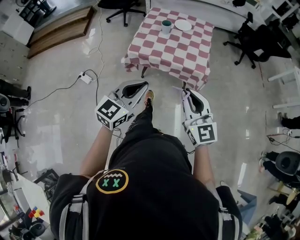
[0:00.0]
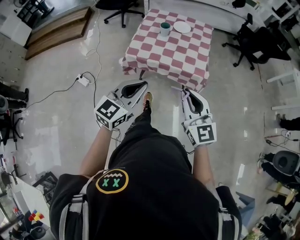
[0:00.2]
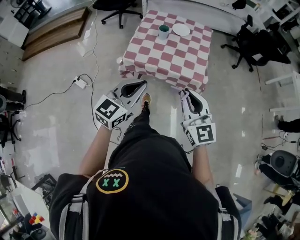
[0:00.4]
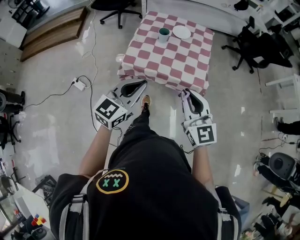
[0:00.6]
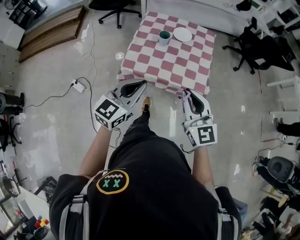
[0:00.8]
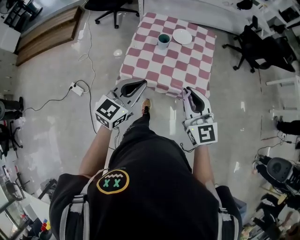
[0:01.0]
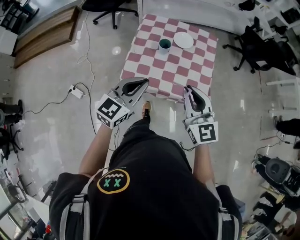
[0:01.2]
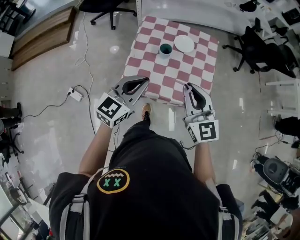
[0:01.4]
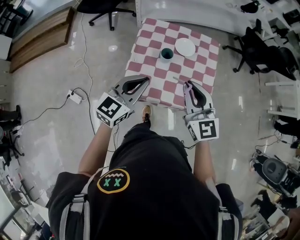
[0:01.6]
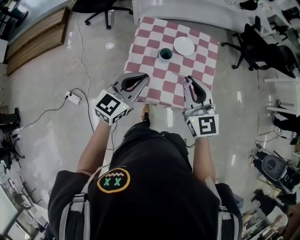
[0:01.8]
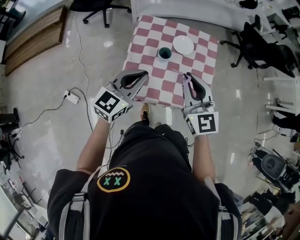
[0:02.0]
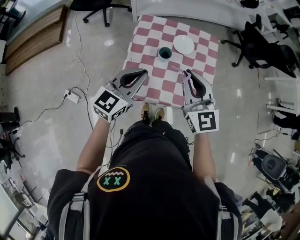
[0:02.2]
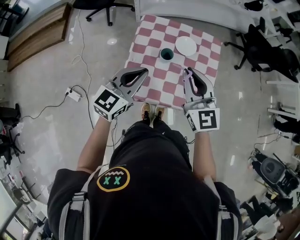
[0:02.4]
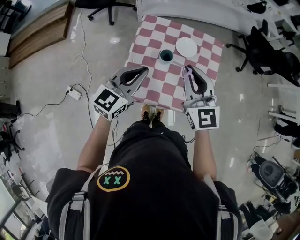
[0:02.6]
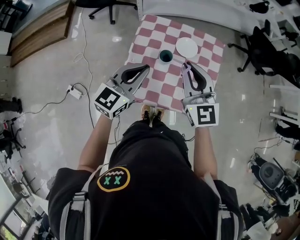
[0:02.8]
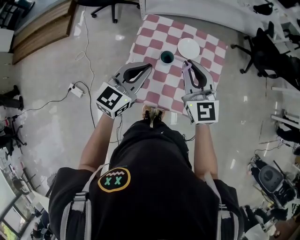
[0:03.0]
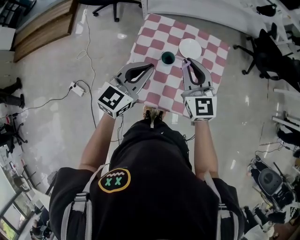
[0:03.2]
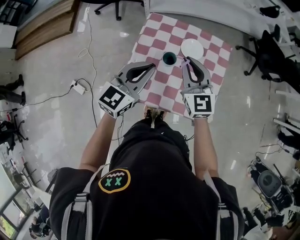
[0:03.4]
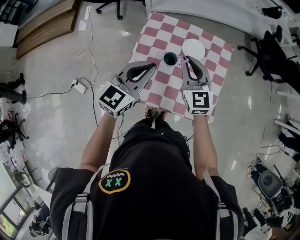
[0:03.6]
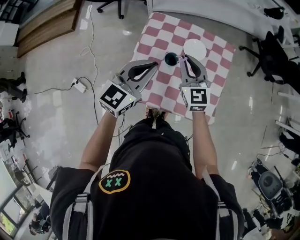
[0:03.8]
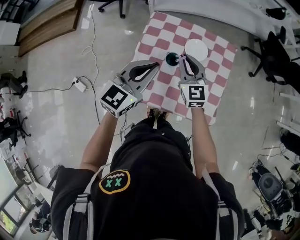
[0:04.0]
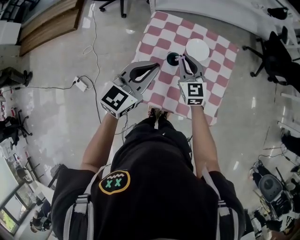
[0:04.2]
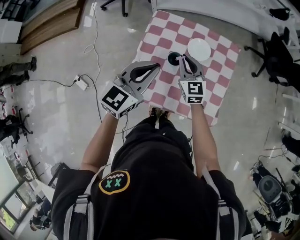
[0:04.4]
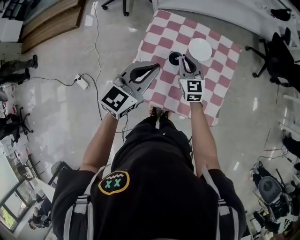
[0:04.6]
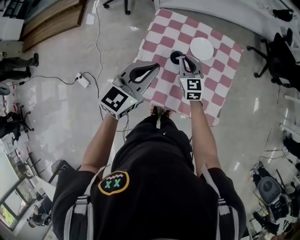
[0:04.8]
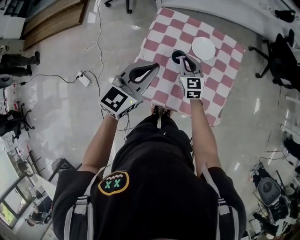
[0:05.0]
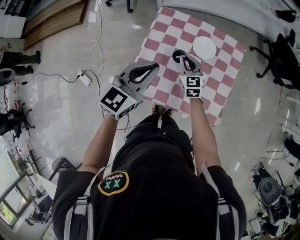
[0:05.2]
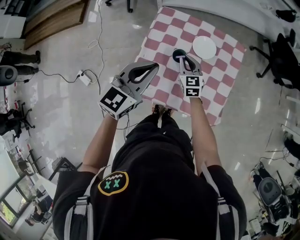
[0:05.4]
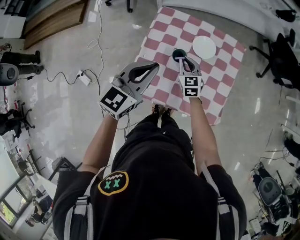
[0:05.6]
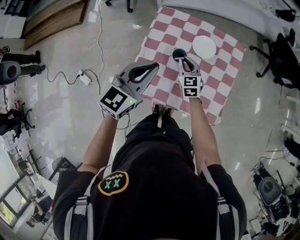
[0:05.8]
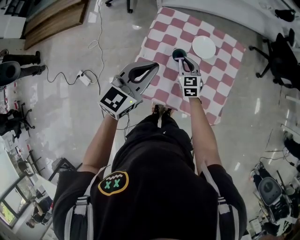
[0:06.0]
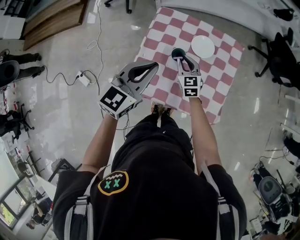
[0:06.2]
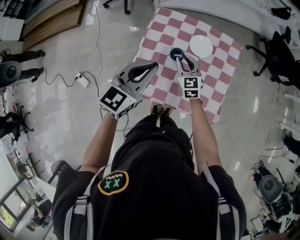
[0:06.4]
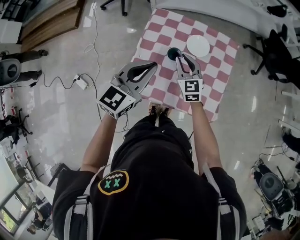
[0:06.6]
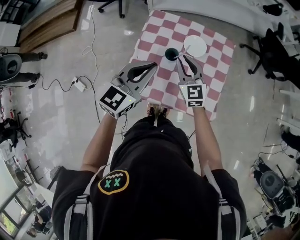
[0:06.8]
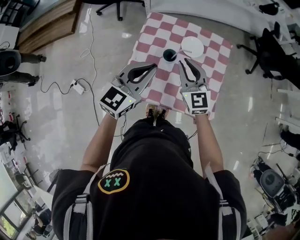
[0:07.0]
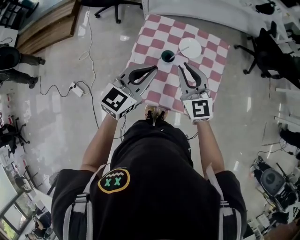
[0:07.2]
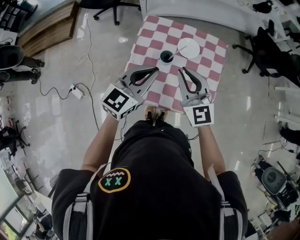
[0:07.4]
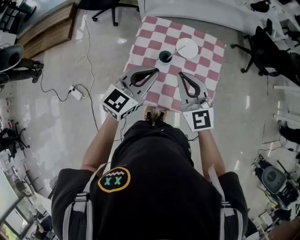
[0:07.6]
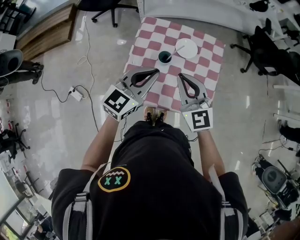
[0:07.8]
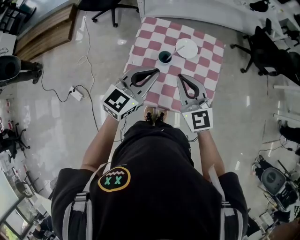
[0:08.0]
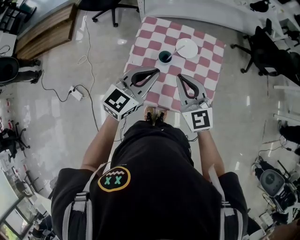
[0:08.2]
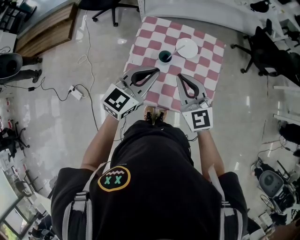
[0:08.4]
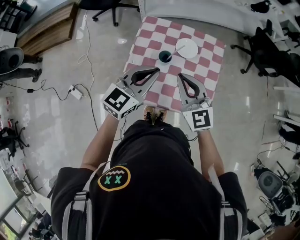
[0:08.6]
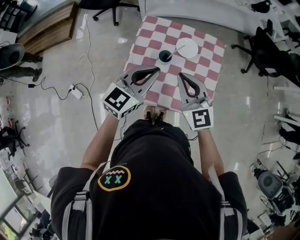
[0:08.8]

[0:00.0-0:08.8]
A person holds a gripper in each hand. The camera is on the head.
0.0 to 1.4 s: Both grippers move forward, some 35 cm.
1.4 to 3.0 s: Both grippers move forward, approximately 15 cm.
3.0 to 4.4 s: The right gripper travels downward and forward by about 20 cm.
4.4 to 5.8 s: The right gripper goes about 10 cm downward.
5.8 to 7.4 s: The right gripper is displaced upward and backward by approximately 30 cm, and swivels roughly 30 degrees, while the left gripper moves some 5 cm.
7.4 to 8.8 s: The grippers stay close to where they were, moving slightly.

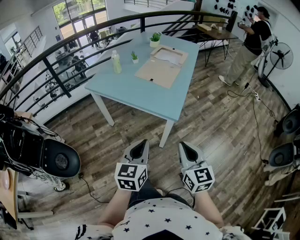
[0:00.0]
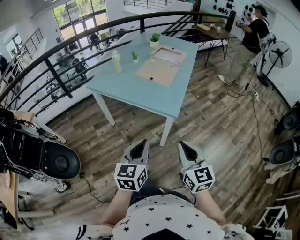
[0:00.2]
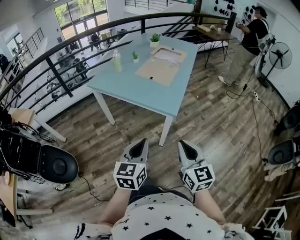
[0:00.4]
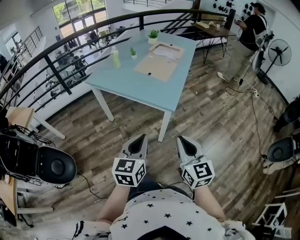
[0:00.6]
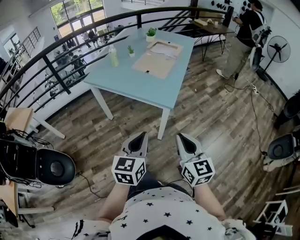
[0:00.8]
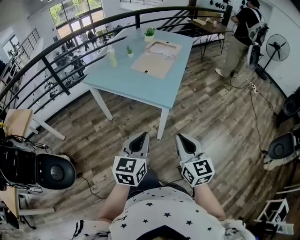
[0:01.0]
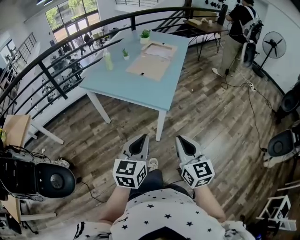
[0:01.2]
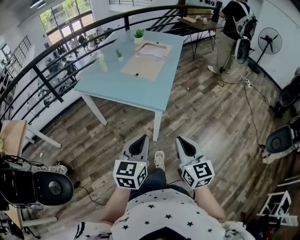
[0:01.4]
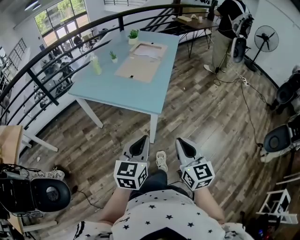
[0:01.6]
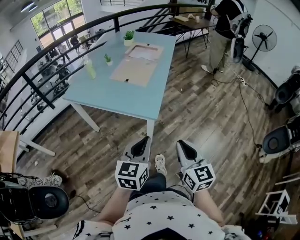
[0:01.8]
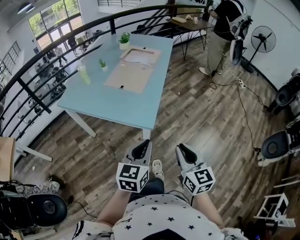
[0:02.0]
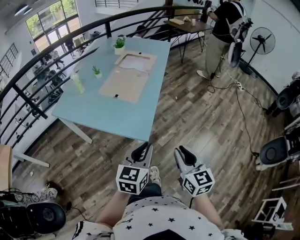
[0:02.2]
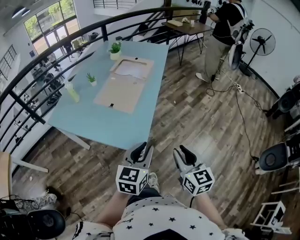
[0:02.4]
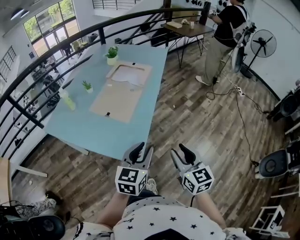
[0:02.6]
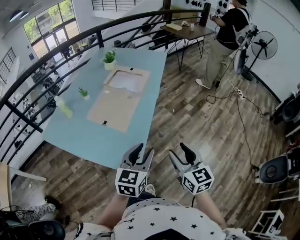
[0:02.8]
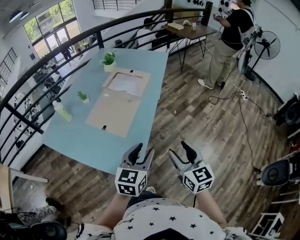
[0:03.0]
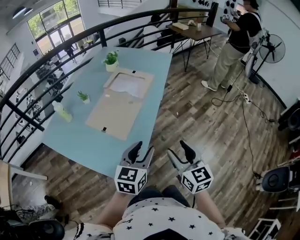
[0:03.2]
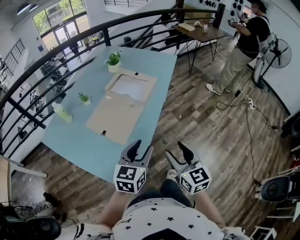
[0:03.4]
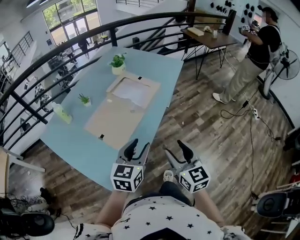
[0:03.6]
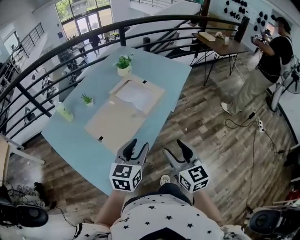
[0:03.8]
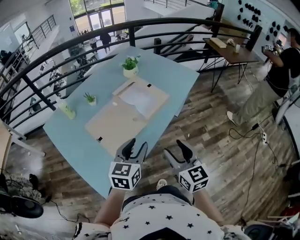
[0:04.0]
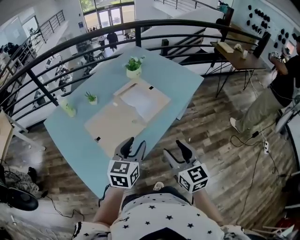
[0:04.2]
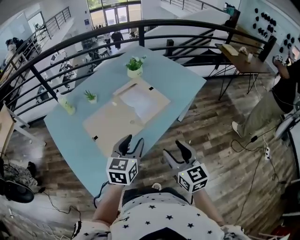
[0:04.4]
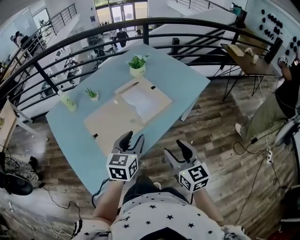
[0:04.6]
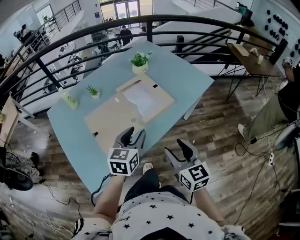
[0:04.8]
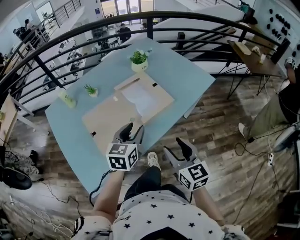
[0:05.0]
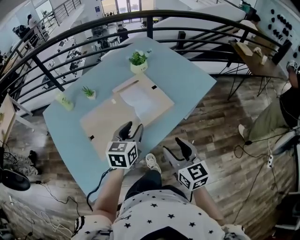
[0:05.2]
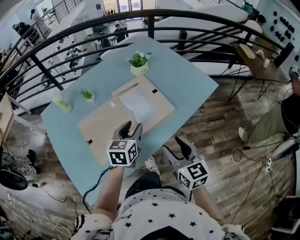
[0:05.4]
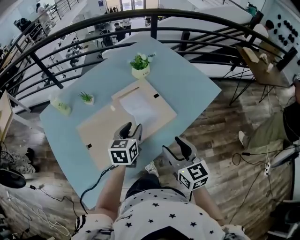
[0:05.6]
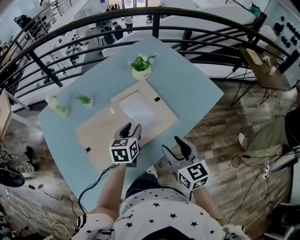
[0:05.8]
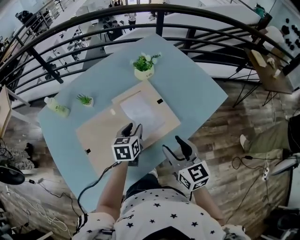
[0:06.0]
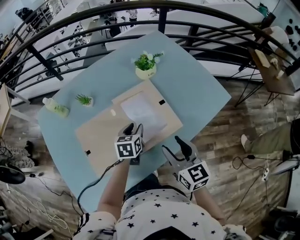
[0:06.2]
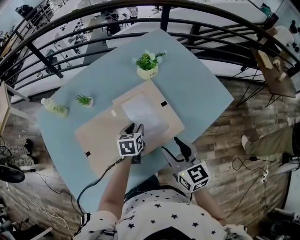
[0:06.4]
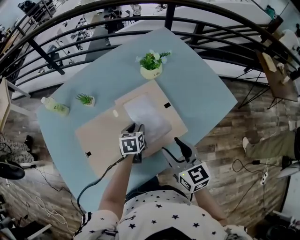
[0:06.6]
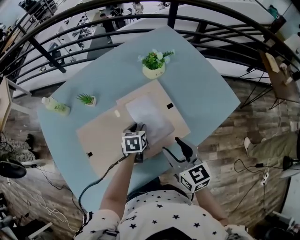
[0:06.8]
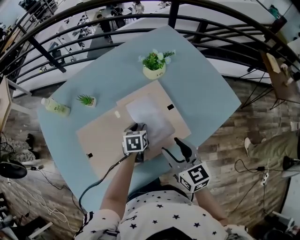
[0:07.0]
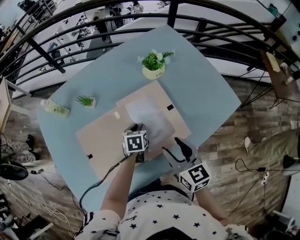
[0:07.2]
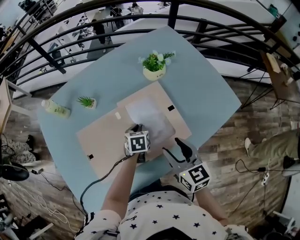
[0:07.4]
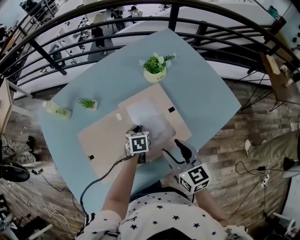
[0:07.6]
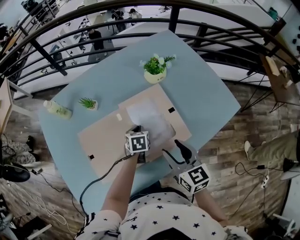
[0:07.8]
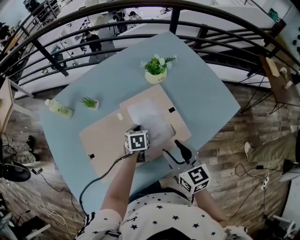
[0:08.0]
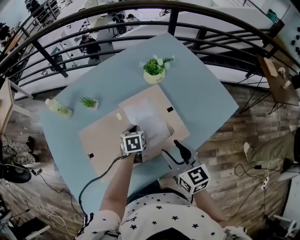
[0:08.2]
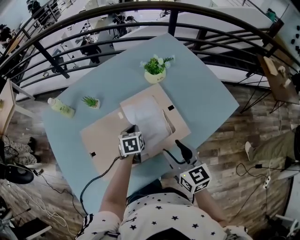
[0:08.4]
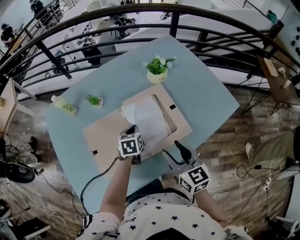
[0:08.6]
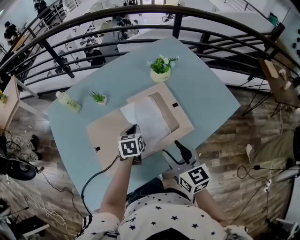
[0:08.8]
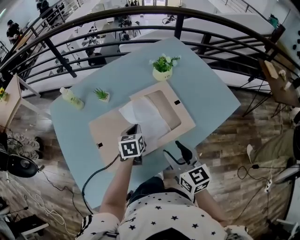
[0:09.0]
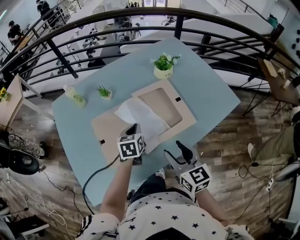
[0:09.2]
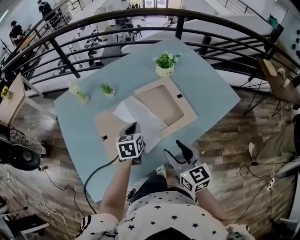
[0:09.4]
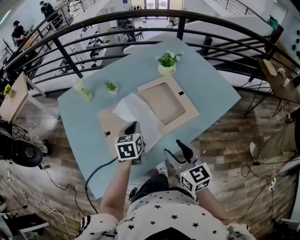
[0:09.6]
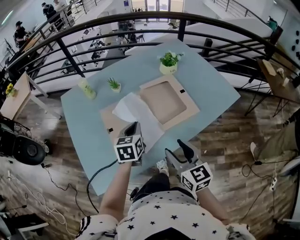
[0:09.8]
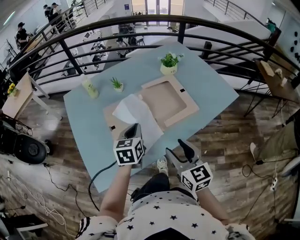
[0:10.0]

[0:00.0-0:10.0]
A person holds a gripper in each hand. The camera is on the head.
0.0 to 1.4 s: The grippers both shift to the right by approximately 5 cm.
1.4 to 2.8 s: The two grippers travel together, forward and to the right, approximately 40 cm. The left gripper opens its fingers, while the right gripper opens.
2.8 to 4.2 s: The right gripper moves some 35 cm, and changes its angle by some 30 degrees. Meanwhile the left gripper ends up approximately 30 cm from where it was, and rotates some 30 degrees.
4.2 to 5.8 s: The two grippers go about 25 cm forward. The left gripper changes its angle by approximately 20 degrees.
5.8 to 7.2 s: The left gripper travels downward and forward by about 15 cm, and rotates approximately 20 degrees; the right gripper travels forward by approximately 10 cm.
7.2 to 8.6 s: The left gripper moves upward, about 5 cm, and closes its fingers.
8.6 to 10.0 s: The right gripper is displaced backward and to the left by some 15 cm; the left gripper heads backward, upward and to the left, covering roughly 20 cm.

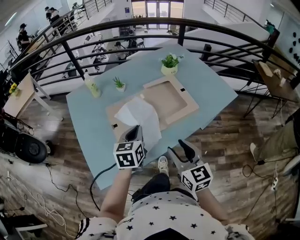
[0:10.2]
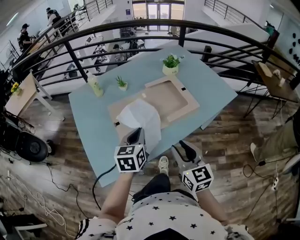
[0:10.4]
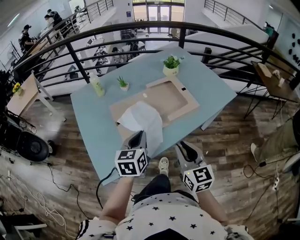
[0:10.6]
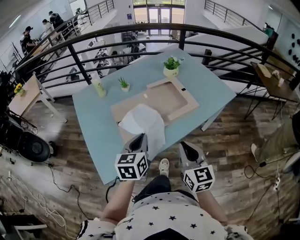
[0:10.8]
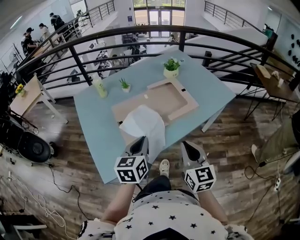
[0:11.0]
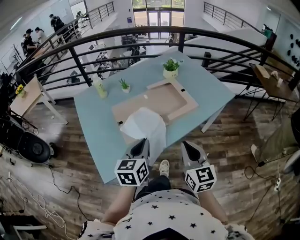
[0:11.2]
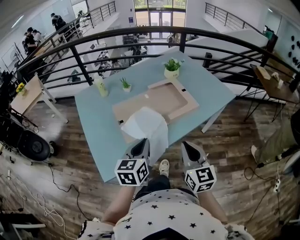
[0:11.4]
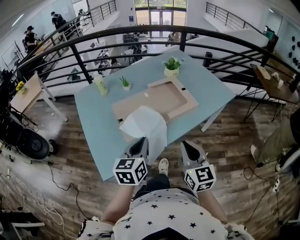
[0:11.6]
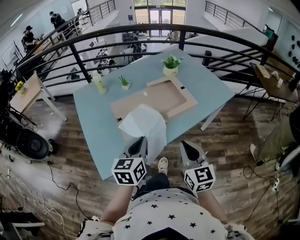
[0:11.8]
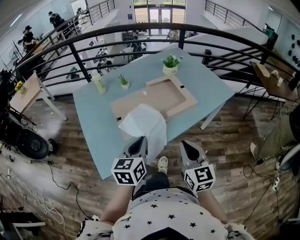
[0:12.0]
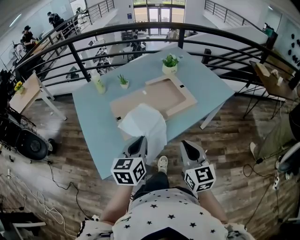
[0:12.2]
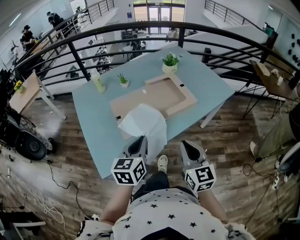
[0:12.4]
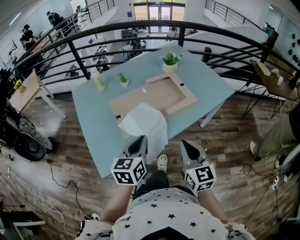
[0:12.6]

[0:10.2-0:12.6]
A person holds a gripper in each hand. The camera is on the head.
10.2 to 11.4 s: The right gripper goes about 5 cm backward, and closes up; the left gripper shifts approximately 15 cm backward.
11.4 to 12.6 s: Both grippers stay put.

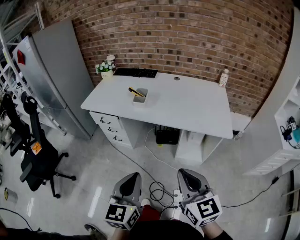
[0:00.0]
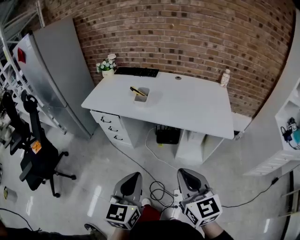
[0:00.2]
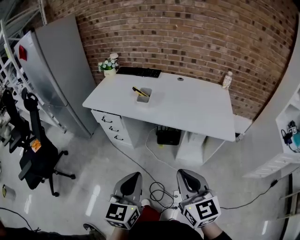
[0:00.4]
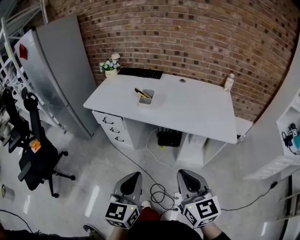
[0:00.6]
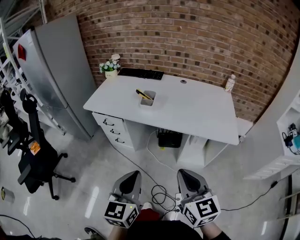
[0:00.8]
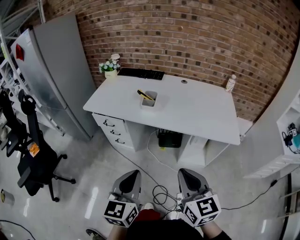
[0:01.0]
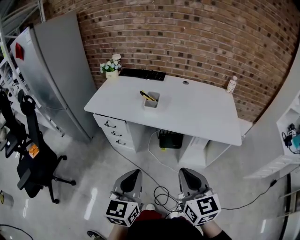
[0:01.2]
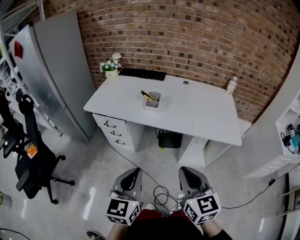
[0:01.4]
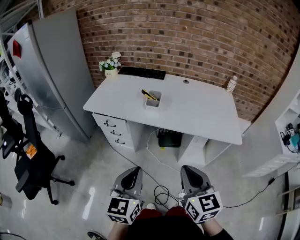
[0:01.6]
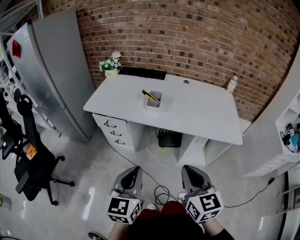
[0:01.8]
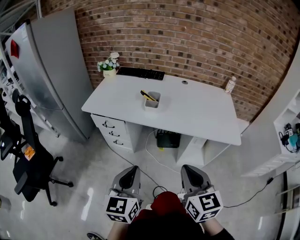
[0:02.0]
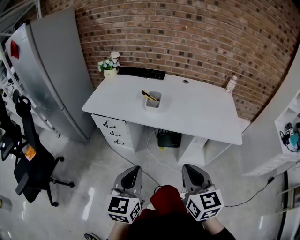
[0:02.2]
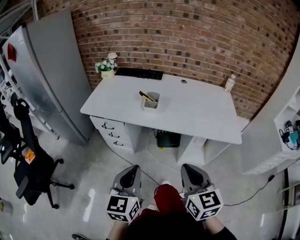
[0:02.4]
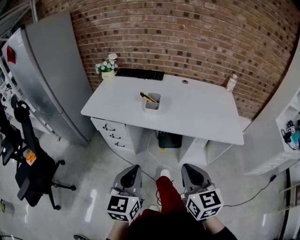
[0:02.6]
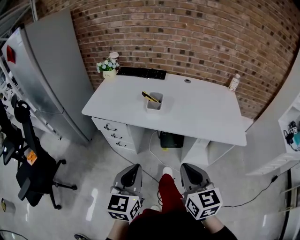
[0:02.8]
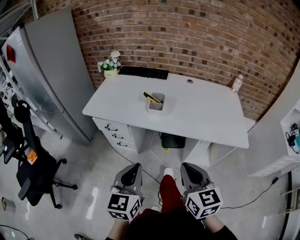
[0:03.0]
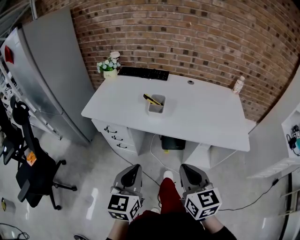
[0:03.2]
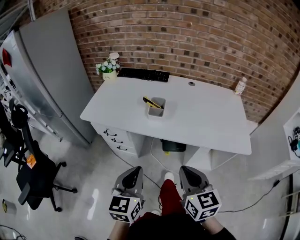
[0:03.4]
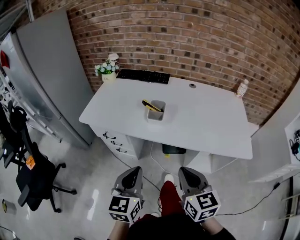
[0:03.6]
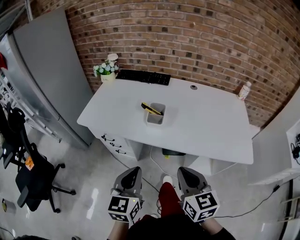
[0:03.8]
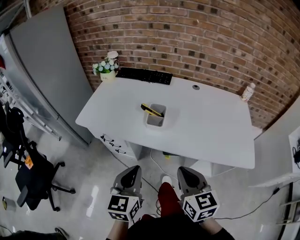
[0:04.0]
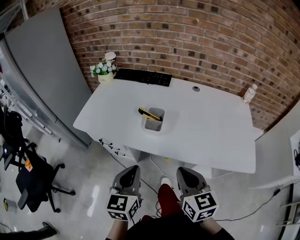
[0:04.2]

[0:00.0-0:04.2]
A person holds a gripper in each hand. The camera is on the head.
0.0 to 1.4 s: The two grippers go some 10 cm to the left and forward.
1.4 to 2.8 s: The grippers both shift forward by approximately 5 cm.
2.8 to 4.2 s: The two grippers go about 15 cm forward.
